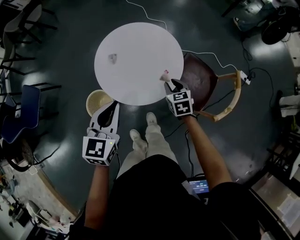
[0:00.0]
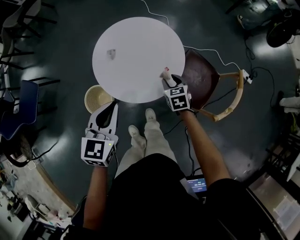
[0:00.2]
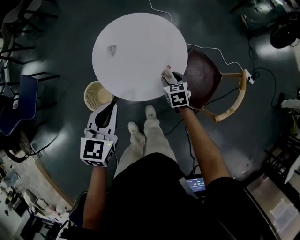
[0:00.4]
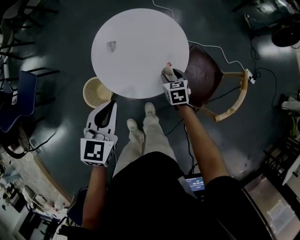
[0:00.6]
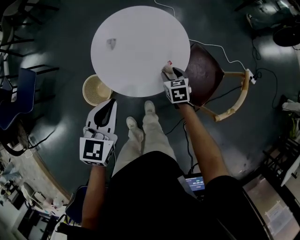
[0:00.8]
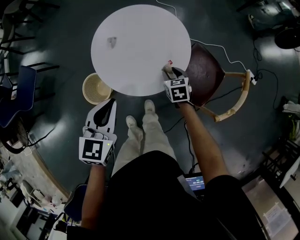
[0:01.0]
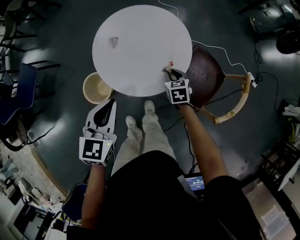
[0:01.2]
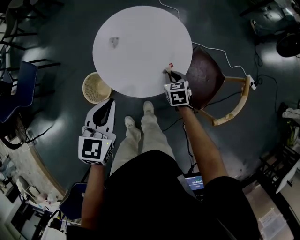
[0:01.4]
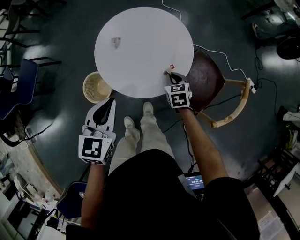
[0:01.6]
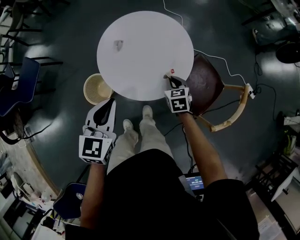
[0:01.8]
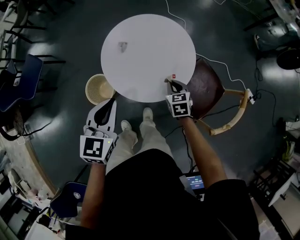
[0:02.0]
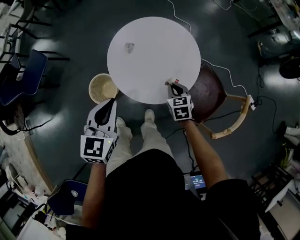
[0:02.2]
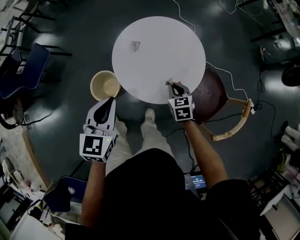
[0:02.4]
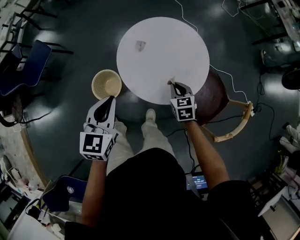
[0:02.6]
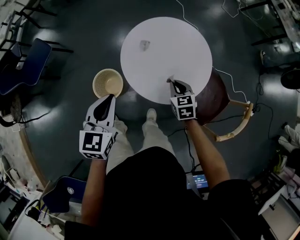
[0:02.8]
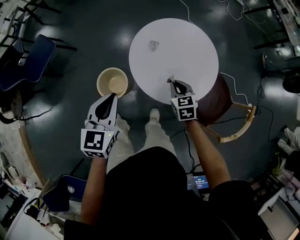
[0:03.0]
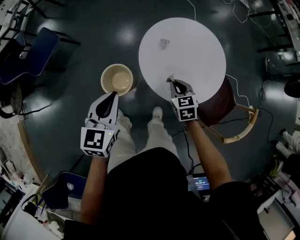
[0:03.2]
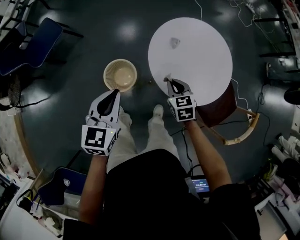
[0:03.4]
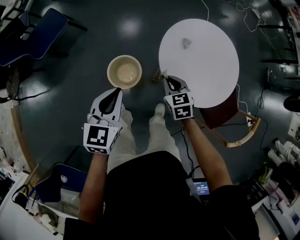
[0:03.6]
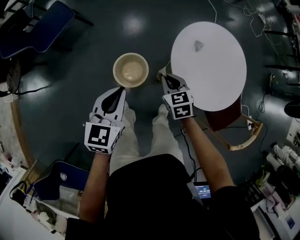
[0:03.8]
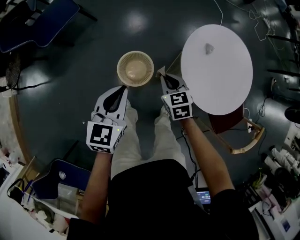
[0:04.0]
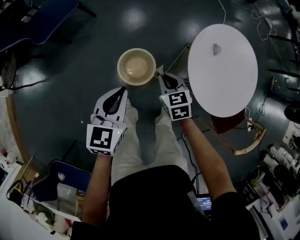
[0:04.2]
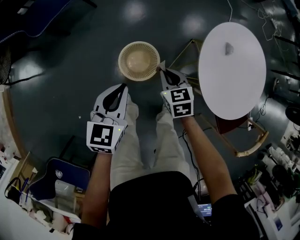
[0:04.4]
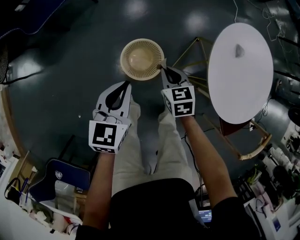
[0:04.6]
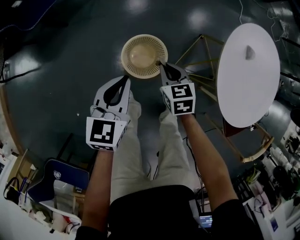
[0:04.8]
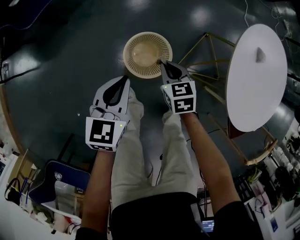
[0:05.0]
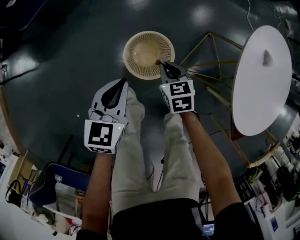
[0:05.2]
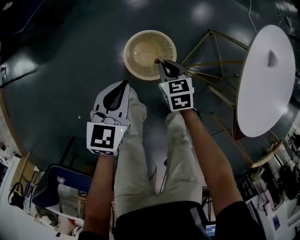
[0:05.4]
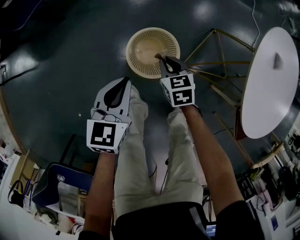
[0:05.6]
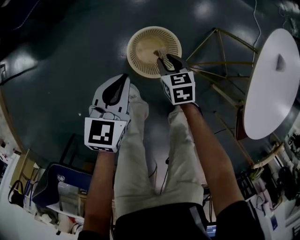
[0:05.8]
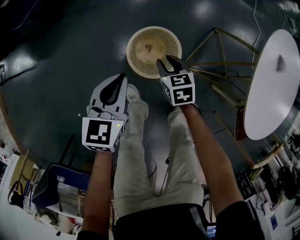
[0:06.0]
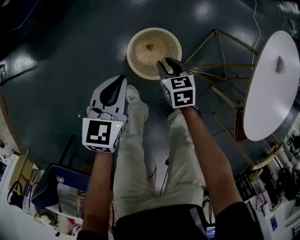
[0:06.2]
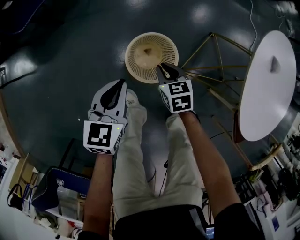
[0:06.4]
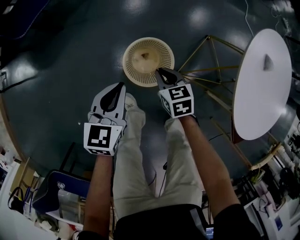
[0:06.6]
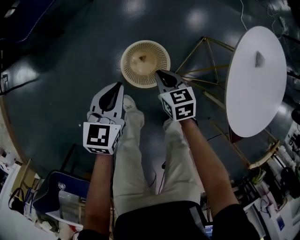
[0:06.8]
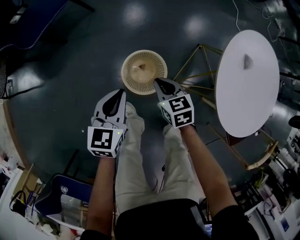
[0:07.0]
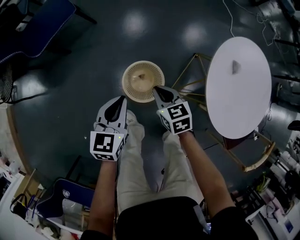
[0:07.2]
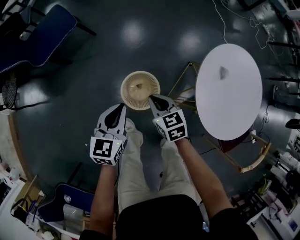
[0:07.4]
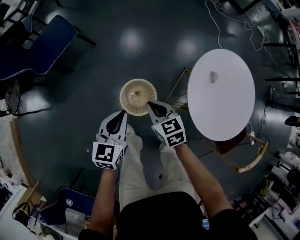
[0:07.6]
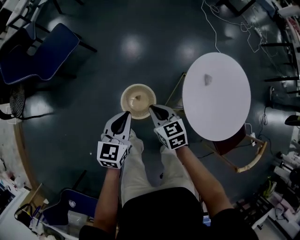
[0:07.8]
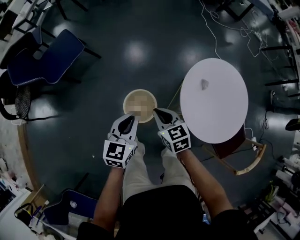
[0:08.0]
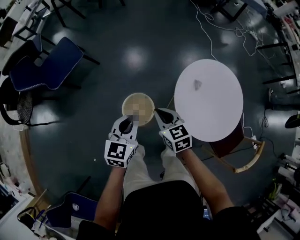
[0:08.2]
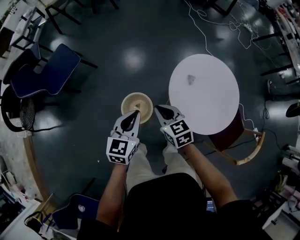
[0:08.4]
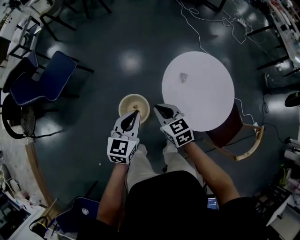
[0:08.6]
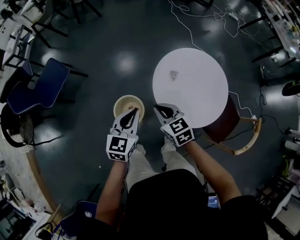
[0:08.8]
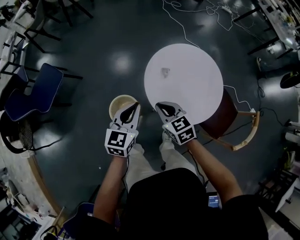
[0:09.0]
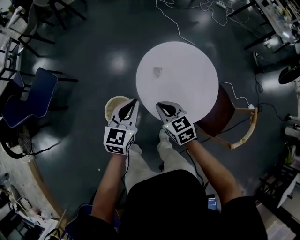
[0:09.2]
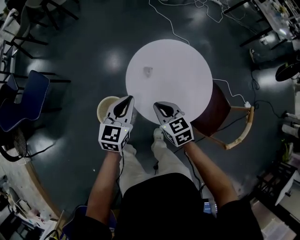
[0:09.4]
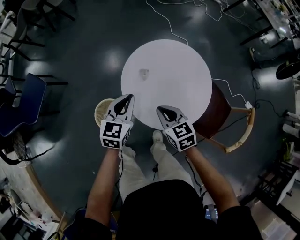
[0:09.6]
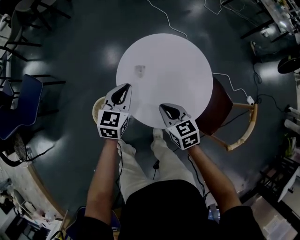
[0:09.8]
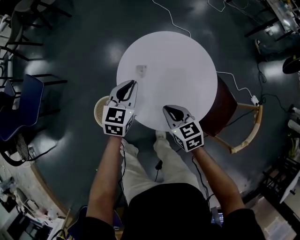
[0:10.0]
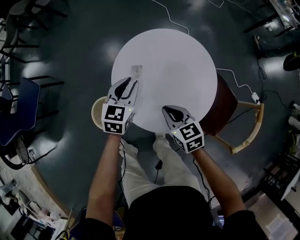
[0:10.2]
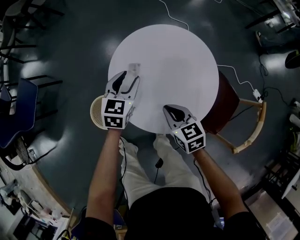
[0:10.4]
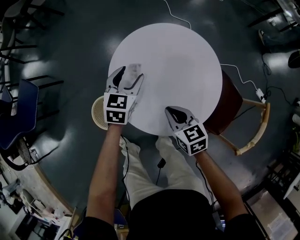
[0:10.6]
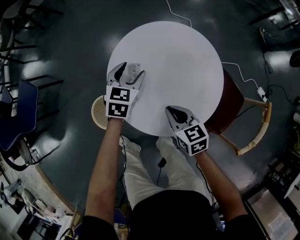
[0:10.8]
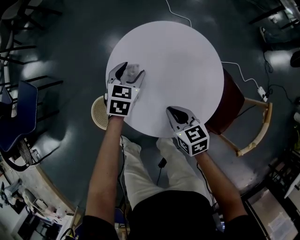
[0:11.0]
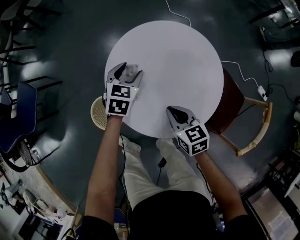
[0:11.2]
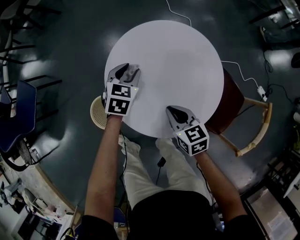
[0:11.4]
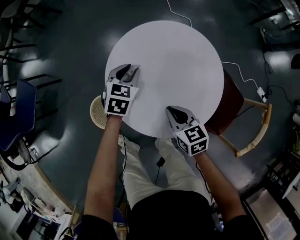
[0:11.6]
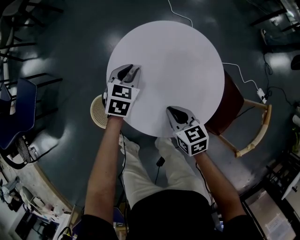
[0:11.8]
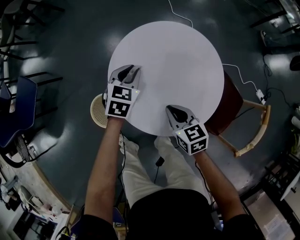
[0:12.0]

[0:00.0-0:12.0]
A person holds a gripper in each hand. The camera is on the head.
0:00.0 to 0:01.6: The right gripper shifts approximately 10 cm downward, and opens and closes again.
0:01.6 to 0:03.0: The left gripper goes roughly 15 cm to the left; the right gripper is displaced to the left and upward by about 20 cm.
0:03.0 to 0:04.4: The left gripper shifts some 30 cm to the left and downward; the right gripper shifts roughly 35 cm to the left.
0:04.4 to 0:06.0: Both grippers travel together downward, roughly 20 cm. The right gripper opens.
0:06.0 to 0:07.6: Both grippers travel together upward, some 25 cm. The right gripper closes.
0:07.6 to 0:09.0: Both grippers move to the right and upward, about 30 cm.
0:09.0 to 0:10.4: The right gripper moves to the right and downward, approximately 25 cm, while the left gripper travels downward, to the right and forward by about 30 cm, and opens its fingers.
0:10.4 to 0:12.0: The left gripper moves some 5 cm.

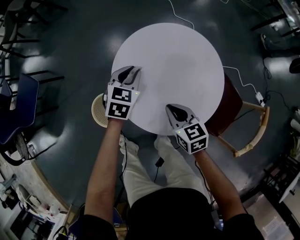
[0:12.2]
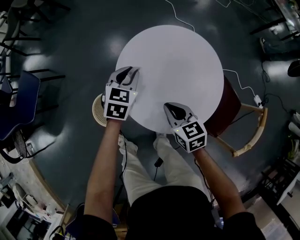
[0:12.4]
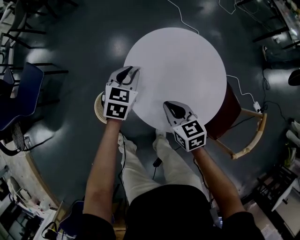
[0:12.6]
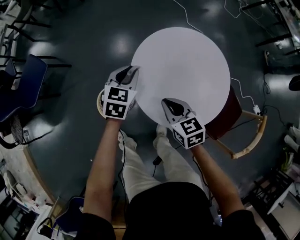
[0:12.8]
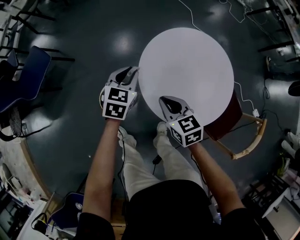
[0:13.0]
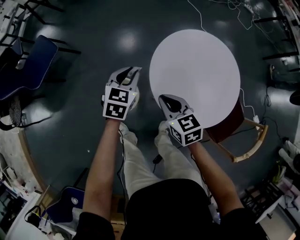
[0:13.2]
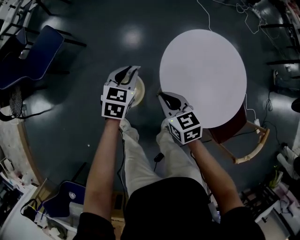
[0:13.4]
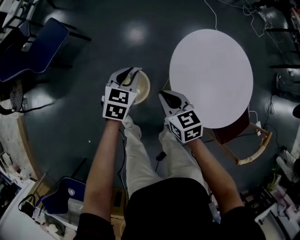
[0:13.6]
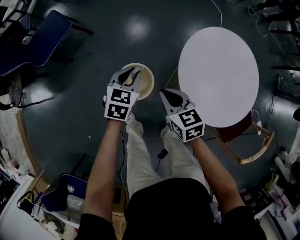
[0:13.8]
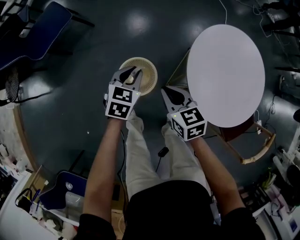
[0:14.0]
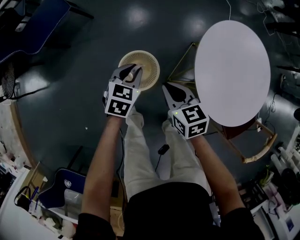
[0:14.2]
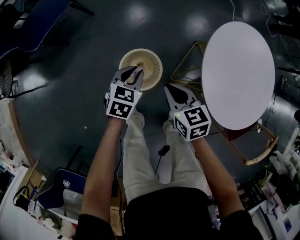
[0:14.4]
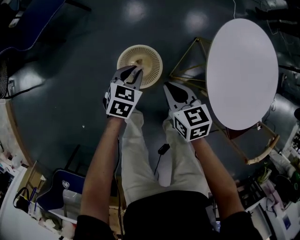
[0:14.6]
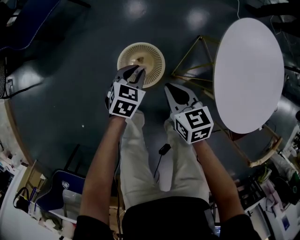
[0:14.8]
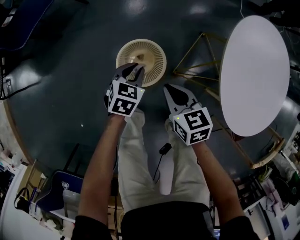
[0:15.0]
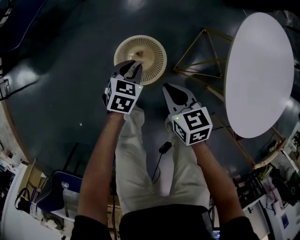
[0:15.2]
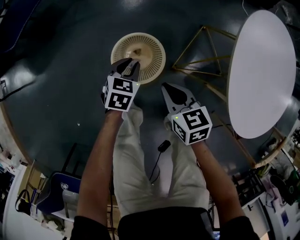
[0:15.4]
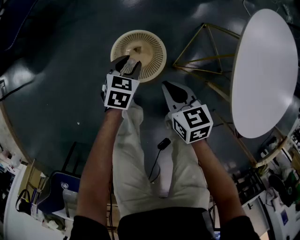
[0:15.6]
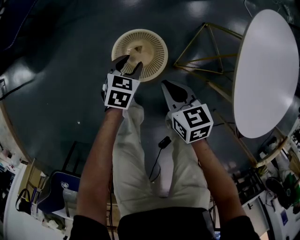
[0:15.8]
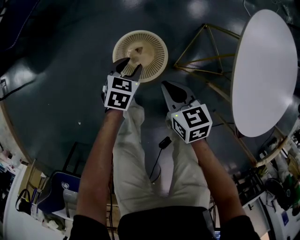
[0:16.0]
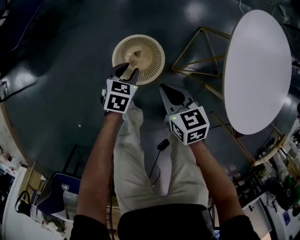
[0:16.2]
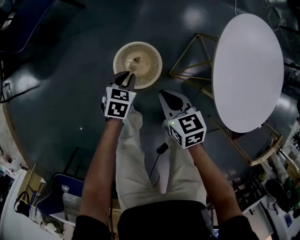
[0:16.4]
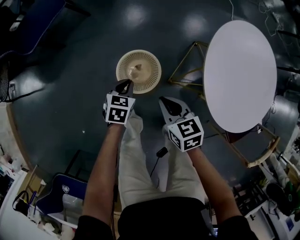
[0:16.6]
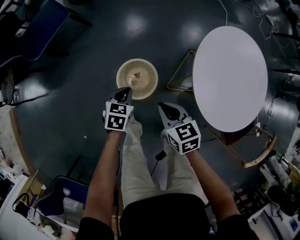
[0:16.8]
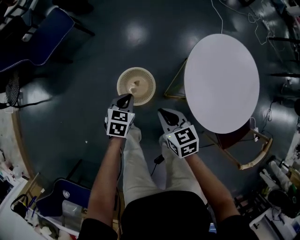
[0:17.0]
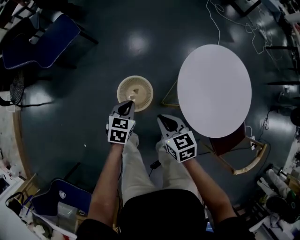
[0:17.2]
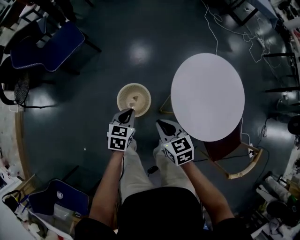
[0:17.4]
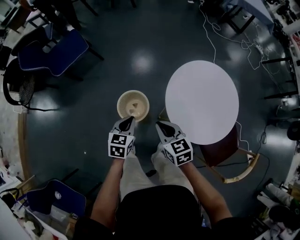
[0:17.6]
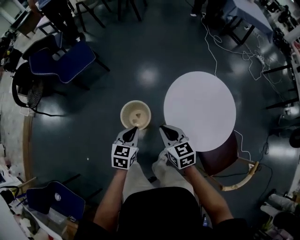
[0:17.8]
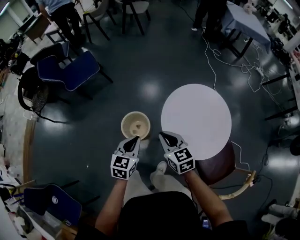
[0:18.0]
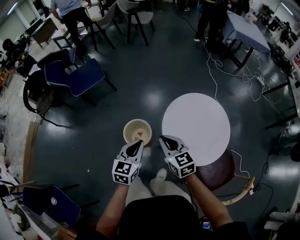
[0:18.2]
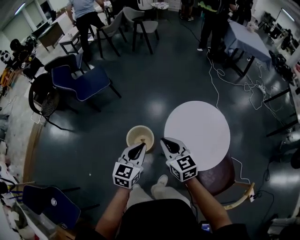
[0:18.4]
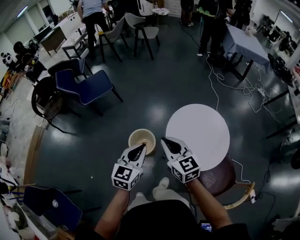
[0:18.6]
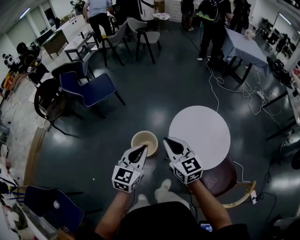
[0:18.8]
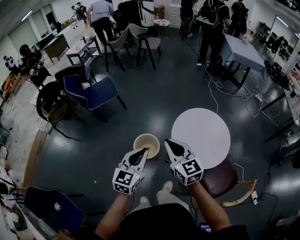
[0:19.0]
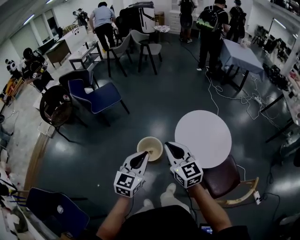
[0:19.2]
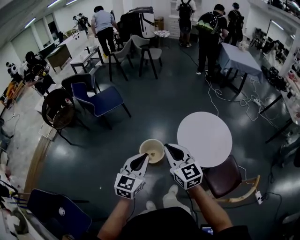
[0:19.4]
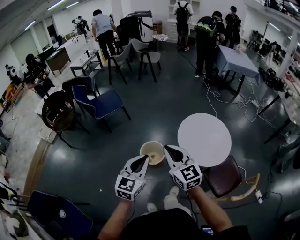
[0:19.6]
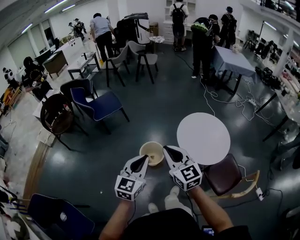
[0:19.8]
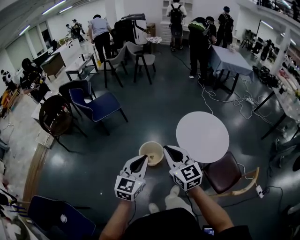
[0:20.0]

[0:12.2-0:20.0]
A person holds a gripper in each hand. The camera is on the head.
0:12.2 to 0:13.8: Both grippers move to the left, some 30 cm. The right gripper swivels some 20 degrees. The left gripper turns by roughly 20 degrees.
0:13.8 to 0:15.4: Both grippers travel together downward, roughly 25 cm.
0:15.4 to 0:16.8: The two grippers go some 15 cm upward. The left gripper opens, then closes again.
0:16.8 to 0:18.4: The two grippers go roughly 40 cm upward. The left gripper tilts its fingers roughly 30 degrees upward. The right gripper changes its angle by roughly 30 degrees.
0:18.4 to 0:20.0: Both grippers travel together backward, to the left and upward, about 30 cm.

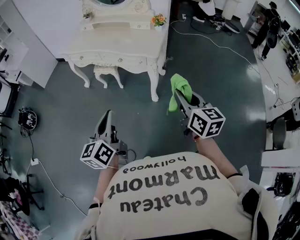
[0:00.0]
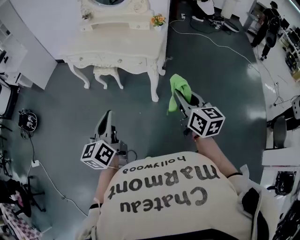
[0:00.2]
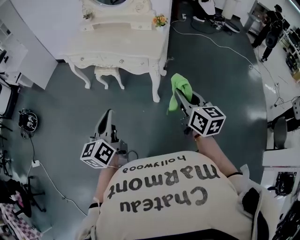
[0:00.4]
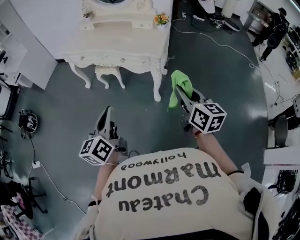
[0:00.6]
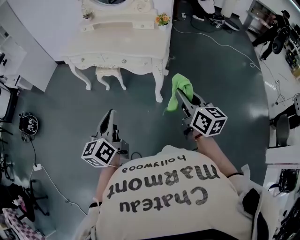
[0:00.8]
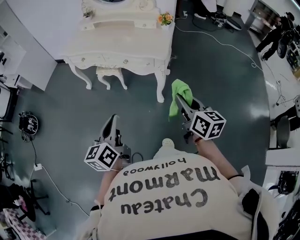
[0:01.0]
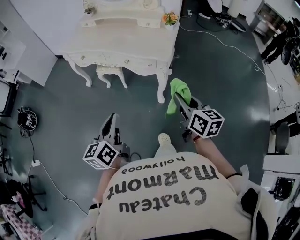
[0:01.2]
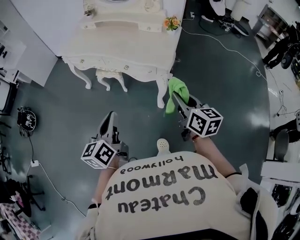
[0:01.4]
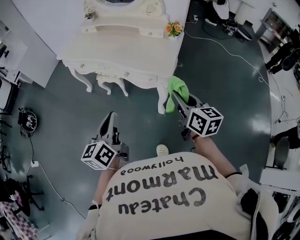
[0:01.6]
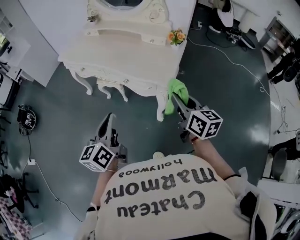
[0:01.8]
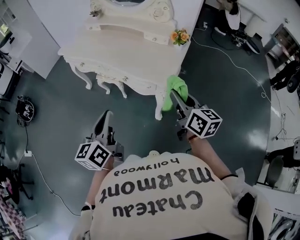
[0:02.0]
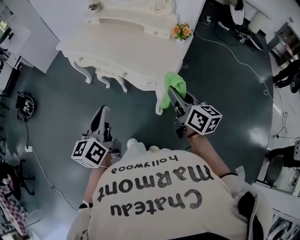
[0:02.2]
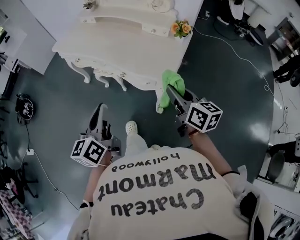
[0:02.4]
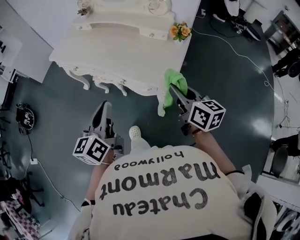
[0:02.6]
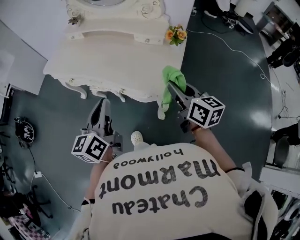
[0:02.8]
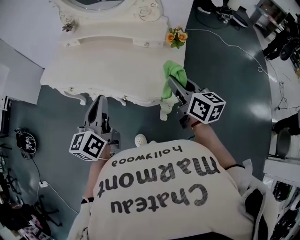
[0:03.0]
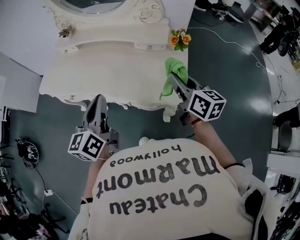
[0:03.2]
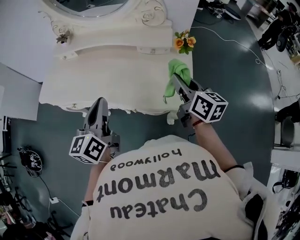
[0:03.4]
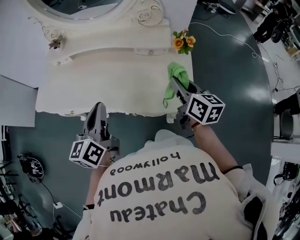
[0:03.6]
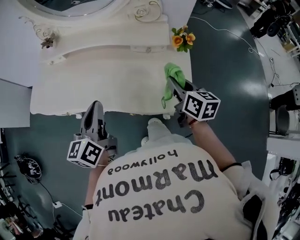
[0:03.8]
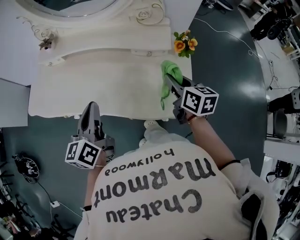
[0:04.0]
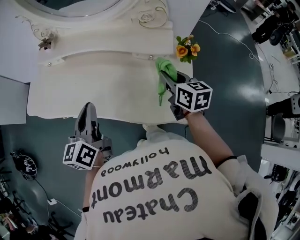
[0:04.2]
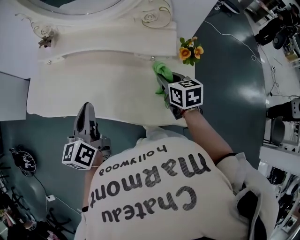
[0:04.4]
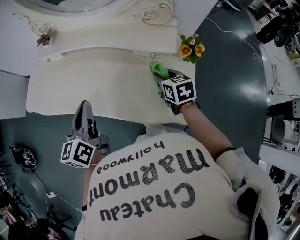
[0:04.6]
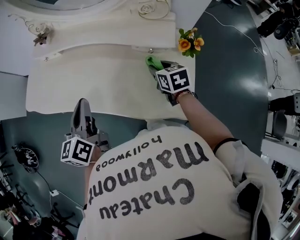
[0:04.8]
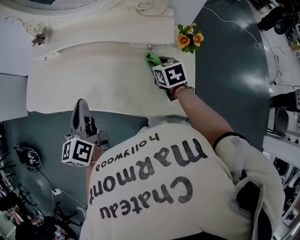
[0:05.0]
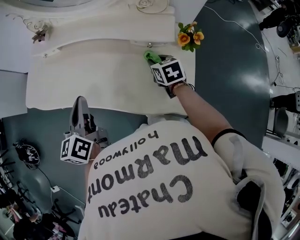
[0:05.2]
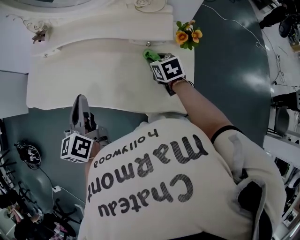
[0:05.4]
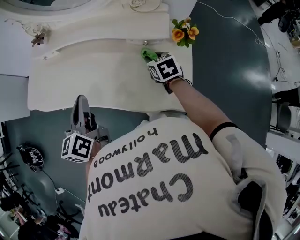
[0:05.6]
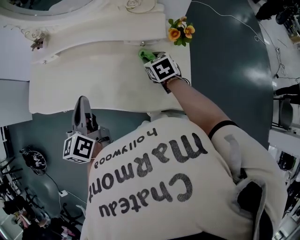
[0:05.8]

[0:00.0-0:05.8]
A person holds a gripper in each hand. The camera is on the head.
0:00.0 to 0:01.4: Both grippers move forward, approximately 15 cm.
0:01.4 to 0:02.8: Both grippers move forward, approximately 25 cm.
0:02.8 to 0:04.4: The left gripper moves forward and to the left, approximately 25 cm, while the right gripper heads forward and downward, covering some 25 cm, and turns by roughly 30 degrees.
0:04.4 to 0:05.8: The right gripper heads downward, covering roughly 5 cm.
